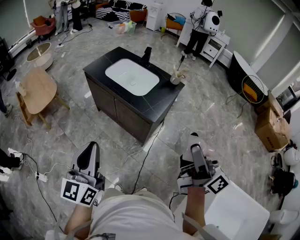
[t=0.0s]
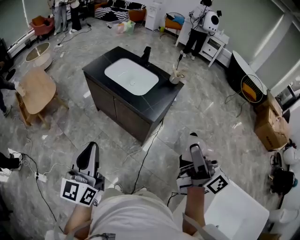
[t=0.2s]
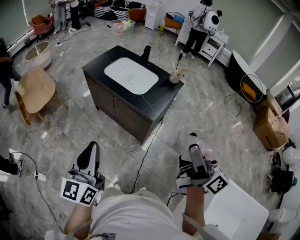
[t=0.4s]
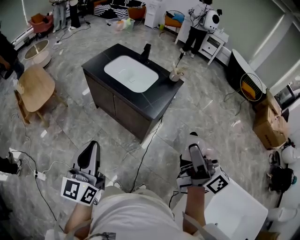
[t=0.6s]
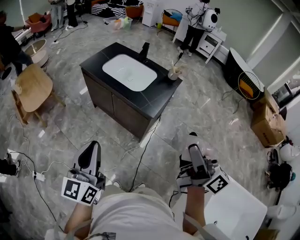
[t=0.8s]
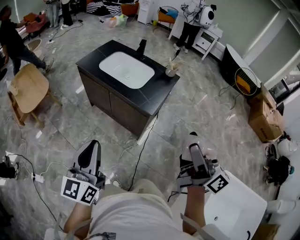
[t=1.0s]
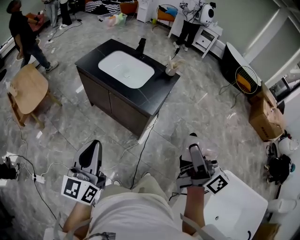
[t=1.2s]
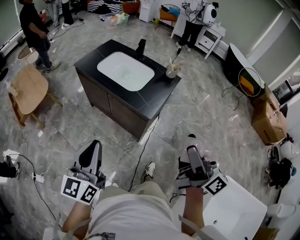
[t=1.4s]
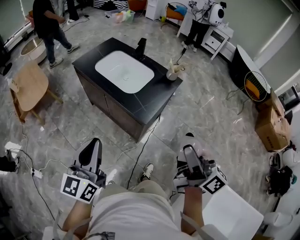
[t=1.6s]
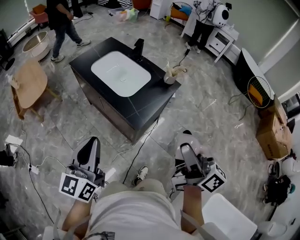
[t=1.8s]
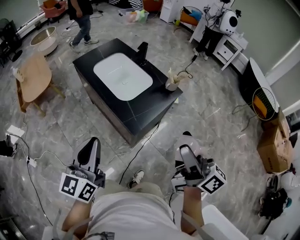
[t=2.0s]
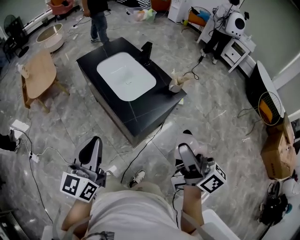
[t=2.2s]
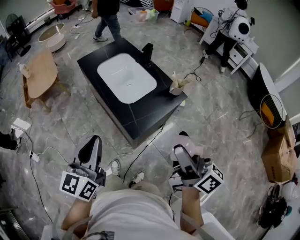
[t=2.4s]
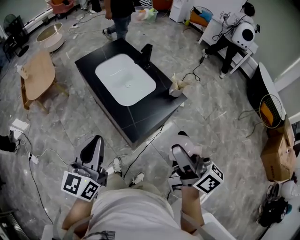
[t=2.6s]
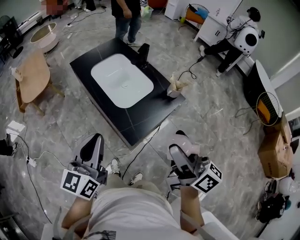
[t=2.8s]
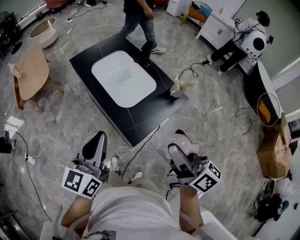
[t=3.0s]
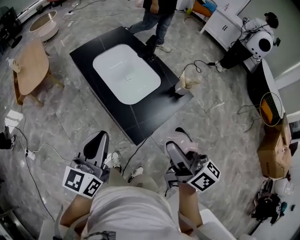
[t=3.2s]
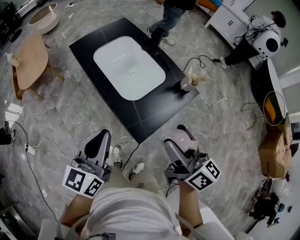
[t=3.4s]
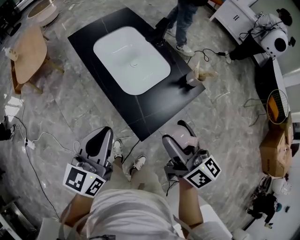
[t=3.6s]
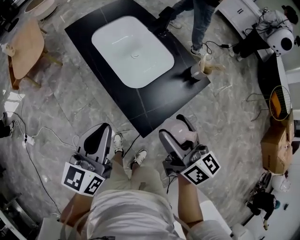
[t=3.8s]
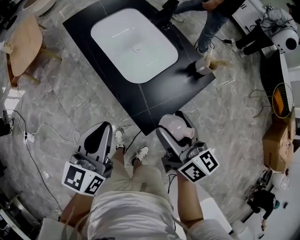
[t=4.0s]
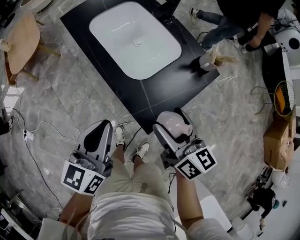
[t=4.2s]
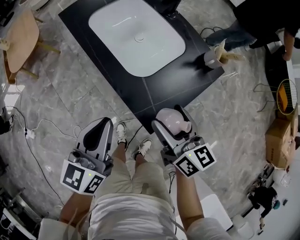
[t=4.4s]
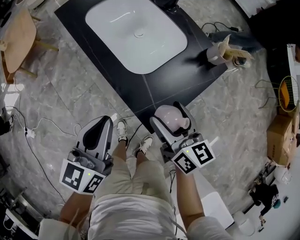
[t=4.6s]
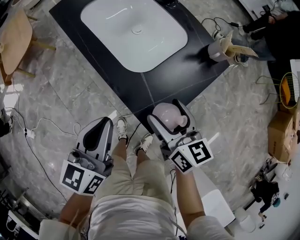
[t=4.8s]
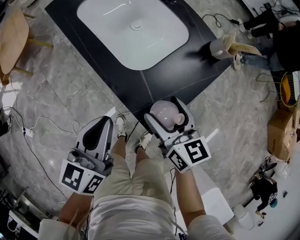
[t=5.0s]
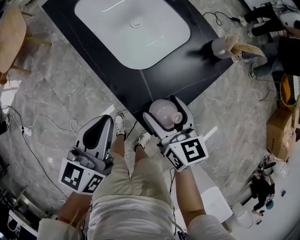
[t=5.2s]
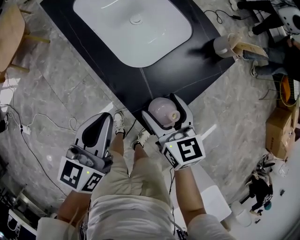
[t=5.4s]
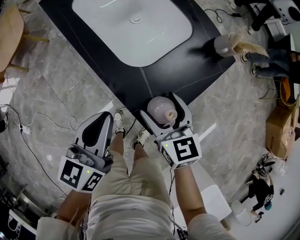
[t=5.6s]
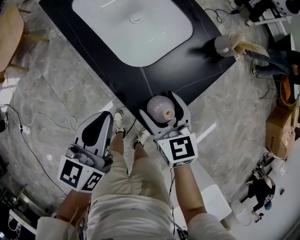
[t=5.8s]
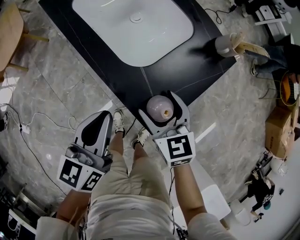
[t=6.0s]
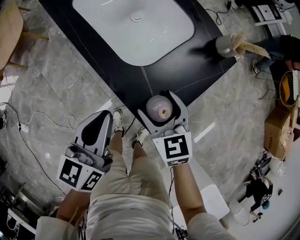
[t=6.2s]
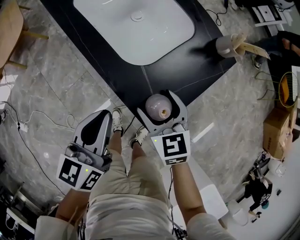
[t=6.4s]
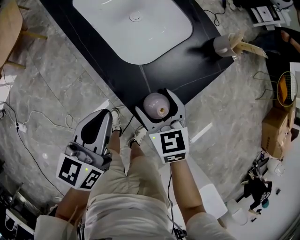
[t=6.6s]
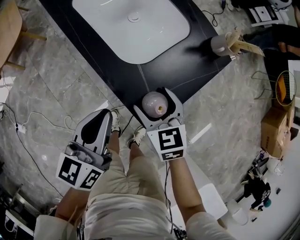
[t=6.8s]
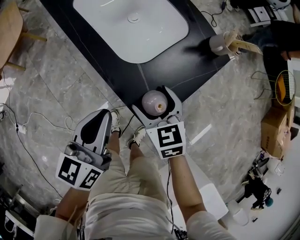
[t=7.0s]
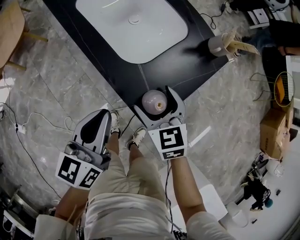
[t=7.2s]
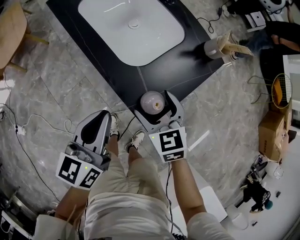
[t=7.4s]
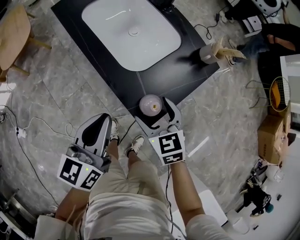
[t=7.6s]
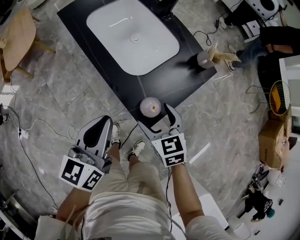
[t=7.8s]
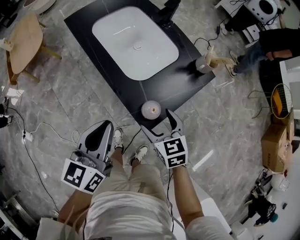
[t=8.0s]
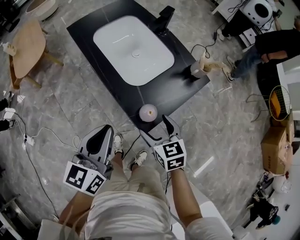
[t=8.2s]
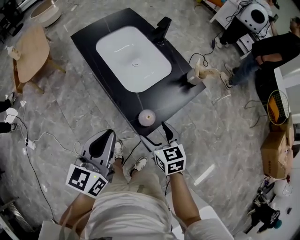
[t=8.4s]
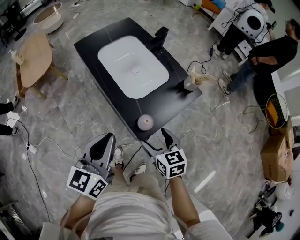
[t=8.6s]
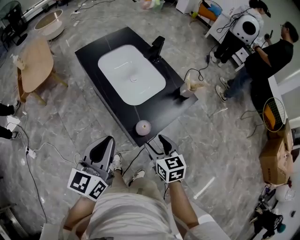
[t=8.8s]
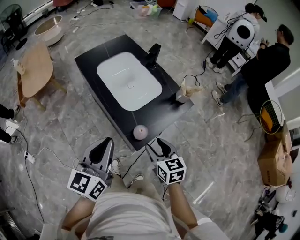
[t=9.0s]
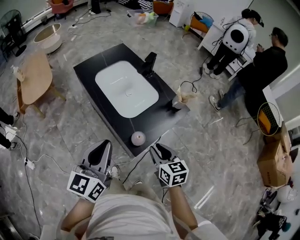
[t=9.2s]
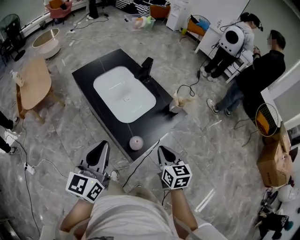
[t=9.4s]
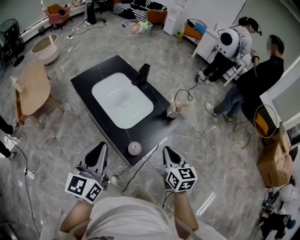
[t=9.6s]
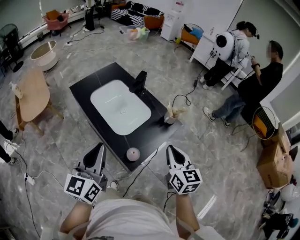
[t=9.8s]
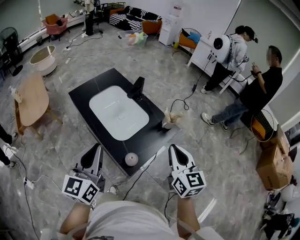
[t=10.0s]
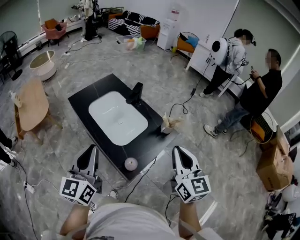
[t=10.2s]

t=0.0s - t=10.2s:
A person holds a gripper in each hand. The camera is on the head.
t=0.0s - t=1.4s: The left gripper changes place by roughly 5 cm.
t=1.4s - t=3.0s: The grippers both shift forward and to the right by approximately 25 cm. The right gripper swivels some 20 degrees.
t=3.0s - t=4.4s: The two grippers go roughly 20 cm downward and forward. The right gripper changes its angle by roughly 30 degrees.
t=4.4s - t=5.8s: The grippers both shift downward by about 10 cm. The right gripper changes its angle by about 30 degrees.
t=5.8s - t=7.2s: The grippers make only small movements.
t=7.2s - t=8.8s: The two grippers go approximately 15 cm upward and backward.
t=8.8s - t=10.2s: The left gripper moves upward and forward, approximately 15 cm. The right gripper moves upward and to the right, some 30 cm, changes its angle by some 30 degrees, and closes its fingers.

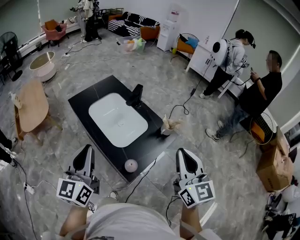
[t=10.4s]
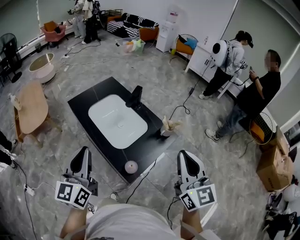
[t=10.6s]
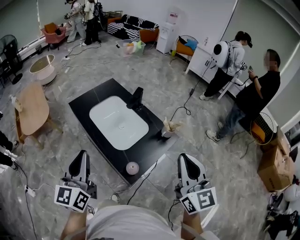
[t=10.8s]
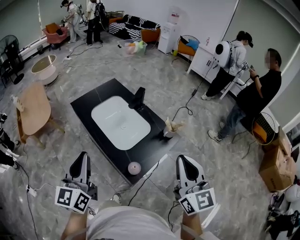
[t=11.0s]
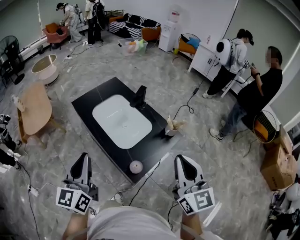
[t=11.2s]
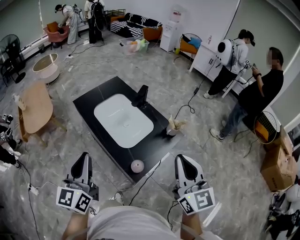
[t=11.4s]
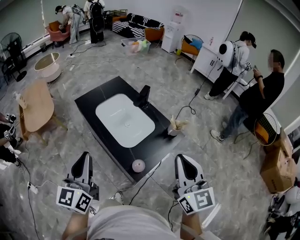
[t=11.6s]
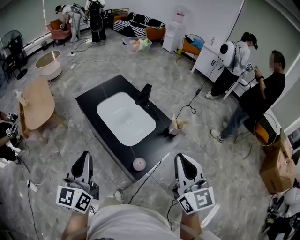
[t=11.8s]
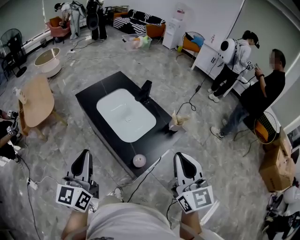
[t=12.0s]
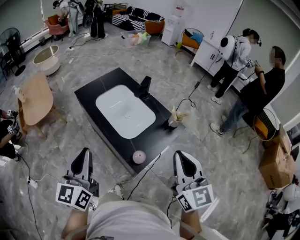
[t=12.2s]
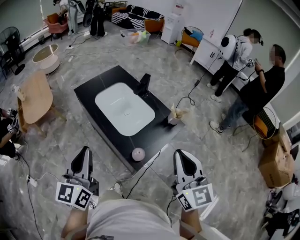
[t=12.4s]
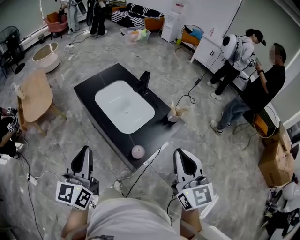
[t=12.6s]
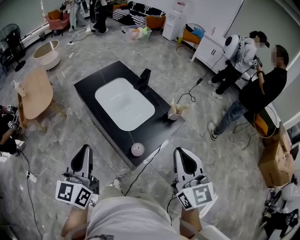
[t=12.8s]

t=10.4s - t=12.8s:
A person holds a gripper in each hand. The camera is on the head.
t=10.4s - t=11.6s: The right gripper ends up approximately 5 cm from where it was; the left gripper changes place by roughly 5 cm.
t=11.6s - t=12.8s: The grippers stay close to where they were, moving slightly.

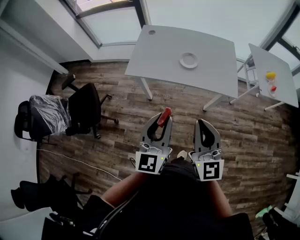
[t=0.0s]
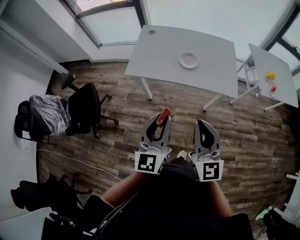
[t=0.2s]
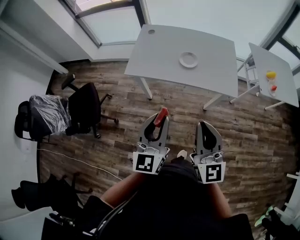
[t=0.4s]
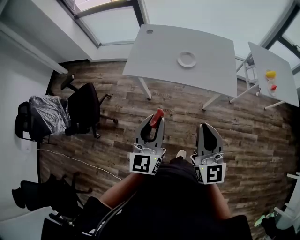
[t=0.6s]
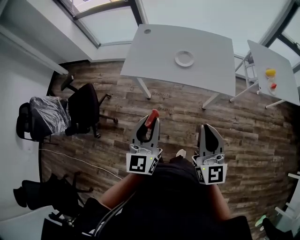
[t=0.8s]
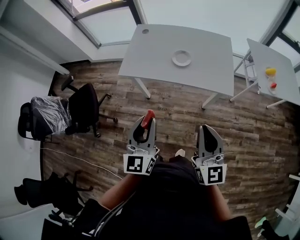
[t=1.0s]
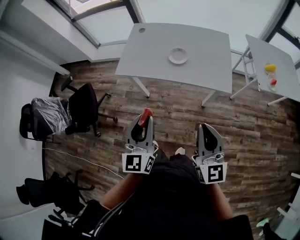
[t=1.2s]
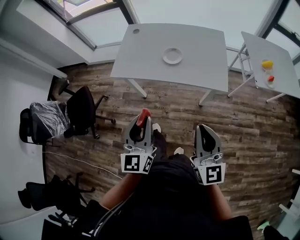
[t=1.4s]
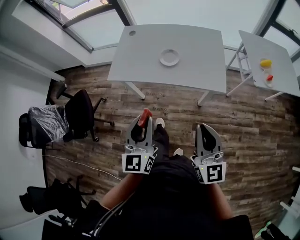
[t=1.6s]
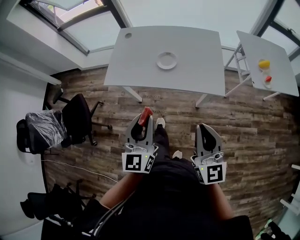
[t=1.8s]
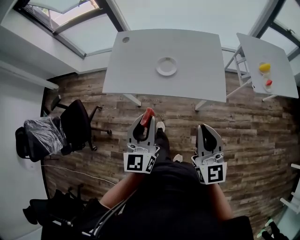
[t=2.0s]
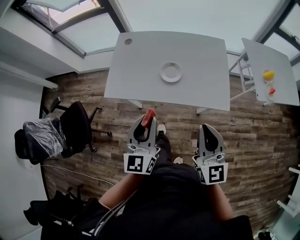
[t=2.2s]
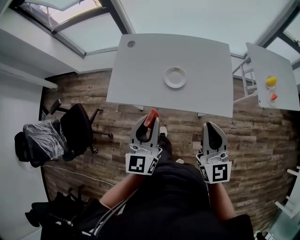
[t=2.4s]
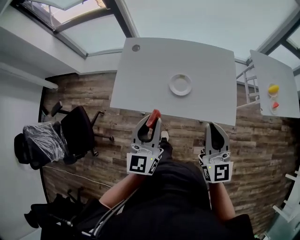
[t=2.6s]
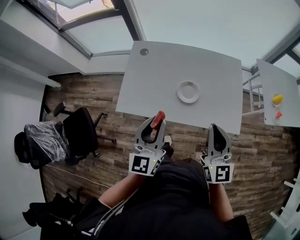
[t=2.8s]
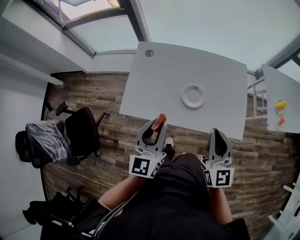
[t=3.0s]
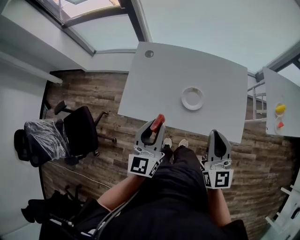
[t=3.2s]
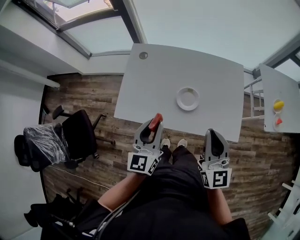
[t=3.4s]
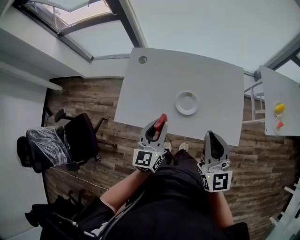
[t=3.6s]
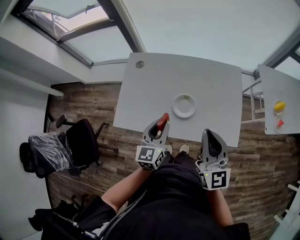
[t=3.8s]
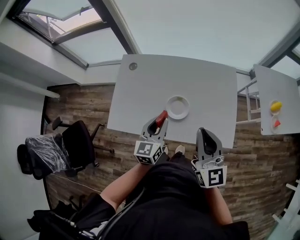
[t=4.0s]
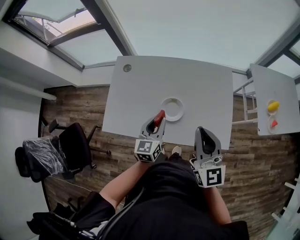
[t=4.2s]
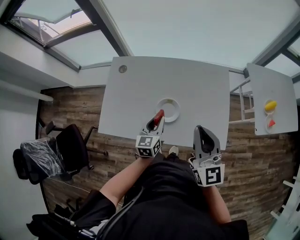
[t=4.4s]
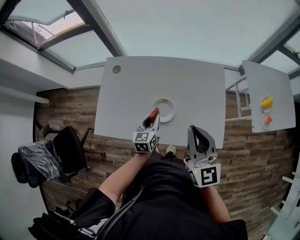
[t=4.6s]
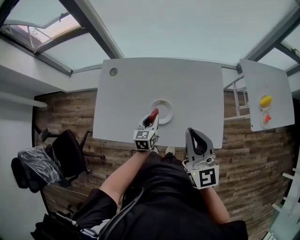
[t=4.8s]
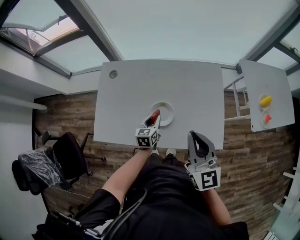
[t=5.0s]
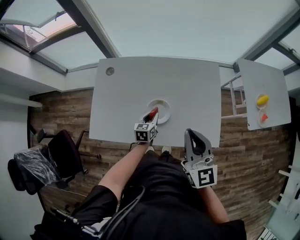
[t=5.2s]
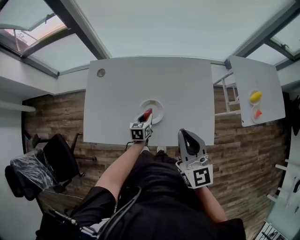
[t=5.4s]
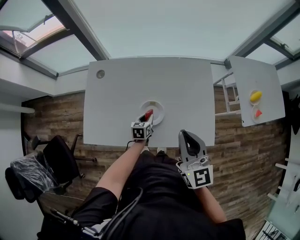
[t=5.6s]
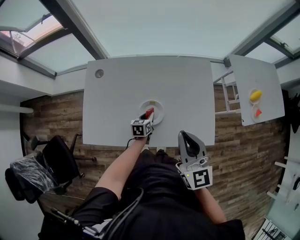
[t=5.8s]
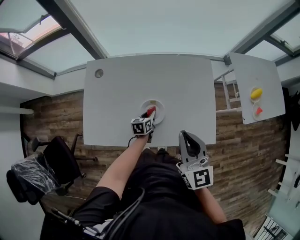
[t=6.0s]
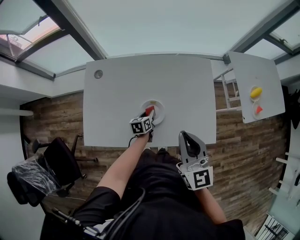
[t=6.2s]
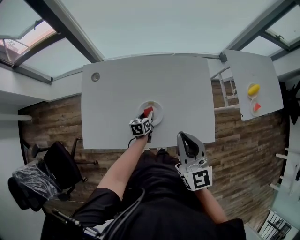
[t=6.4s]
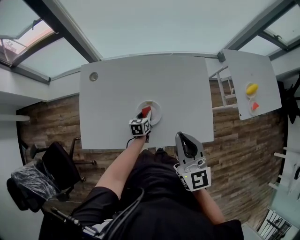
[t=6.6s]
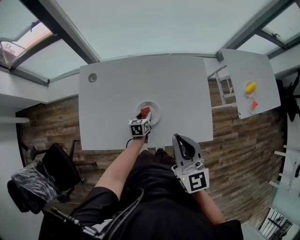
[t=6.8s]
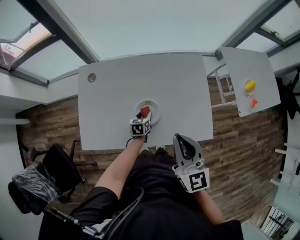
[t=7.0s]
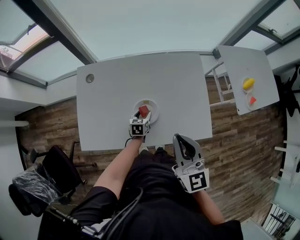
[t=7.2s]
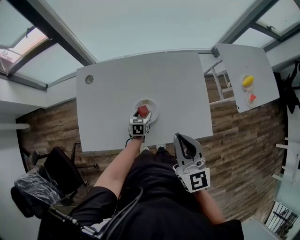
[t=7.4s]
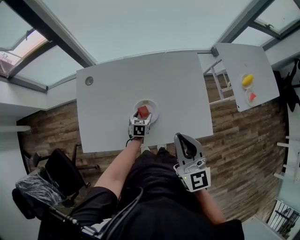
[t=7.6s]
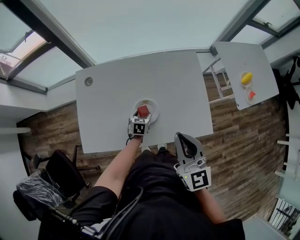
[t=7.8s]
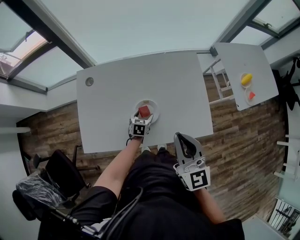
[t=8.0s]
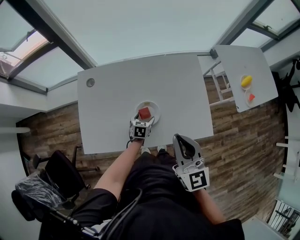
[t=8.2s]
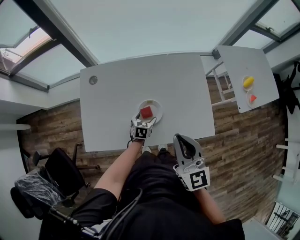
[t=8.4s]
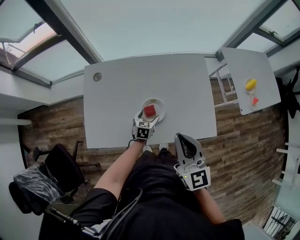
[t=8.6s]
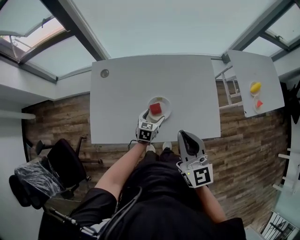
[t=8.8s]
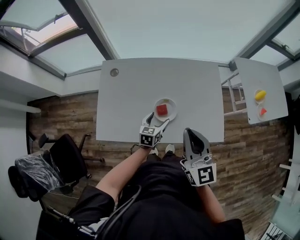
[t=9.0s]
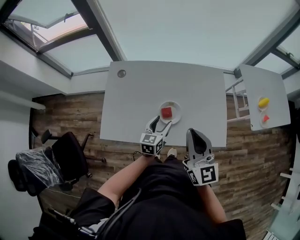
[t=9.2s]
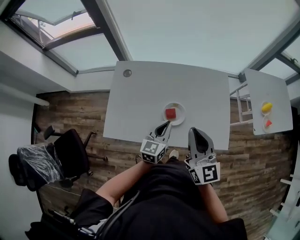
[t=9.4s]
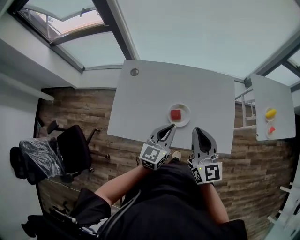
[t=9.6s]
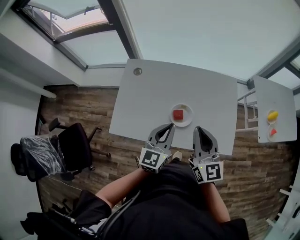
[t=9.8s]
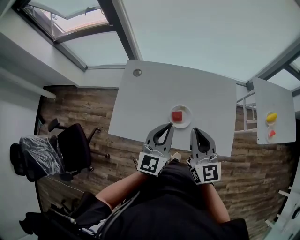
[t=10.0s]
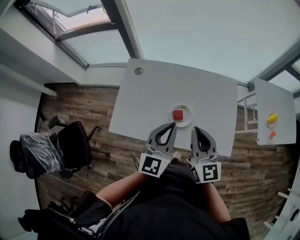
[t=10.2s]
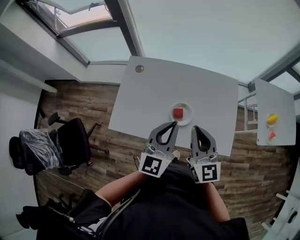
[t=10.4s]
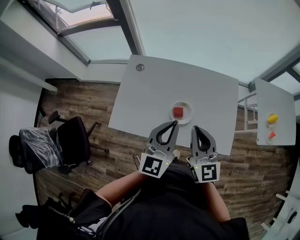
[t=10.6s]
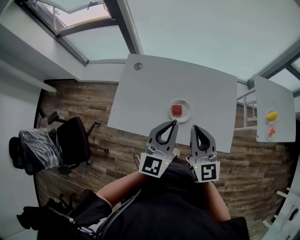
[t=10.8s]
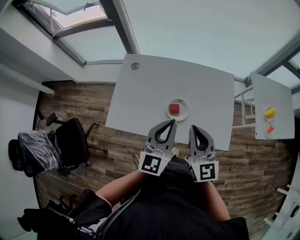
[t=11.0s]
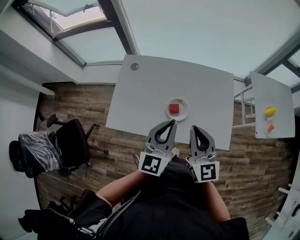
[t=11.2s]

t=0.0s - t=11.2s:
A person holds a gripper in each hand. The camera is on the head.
t=0.0s - t=1.6s: The left gripper moves to the right, roughly 5 cm. The right gripper shifts roughly 15 cm to the right.
t=1.6s - t=3.2s: Both grippers move forward, approximately 30 cm.
t=3.2s - t=4.8s: The right gripper goes about 10 cm forward and to the right; the left gripper moves downward, forward and to the right, approximately 30 cm, and rotates approximately 30 degrees.
t=4.8s - t=6.4s: The left gripper shifts about 15 cm downward, and turns by about 20 degrees.
t=6.4s - t=8.0s: The left gripper rotates some 30 degrees, and opens its fingers.
t=8.0s - t=9.6s: The left gripper travels upward by about 30 cm, tilts its fingers about 40 degrees upward, and closes up. Meanwhile the right gripper goes some 5 cm to the left.
t=9.6s - t=11.2s: The left gripper shifts some 10 cm upward.
